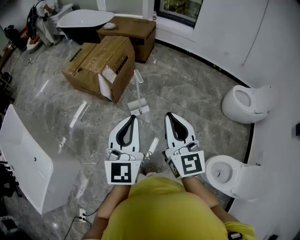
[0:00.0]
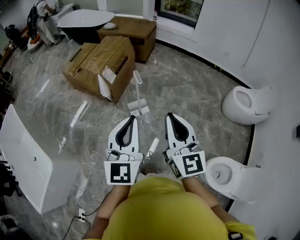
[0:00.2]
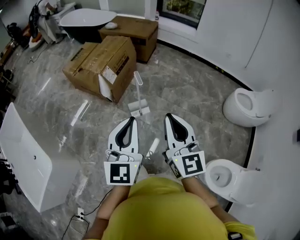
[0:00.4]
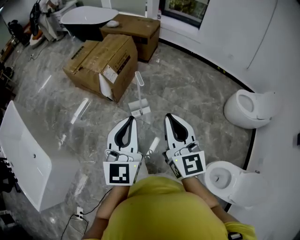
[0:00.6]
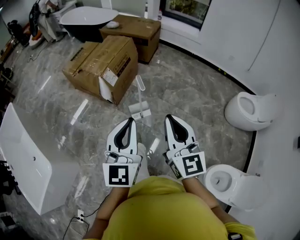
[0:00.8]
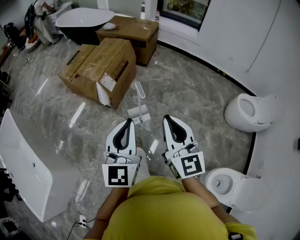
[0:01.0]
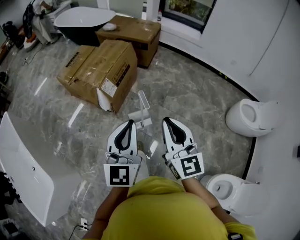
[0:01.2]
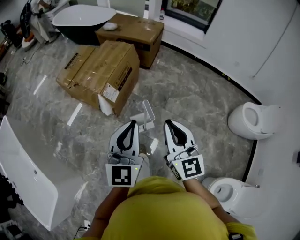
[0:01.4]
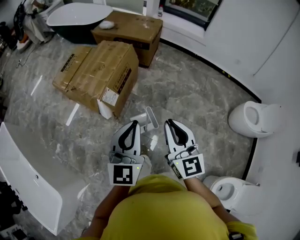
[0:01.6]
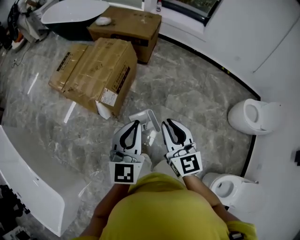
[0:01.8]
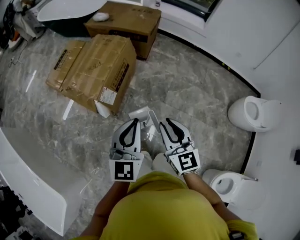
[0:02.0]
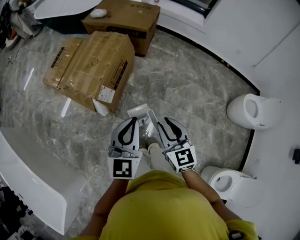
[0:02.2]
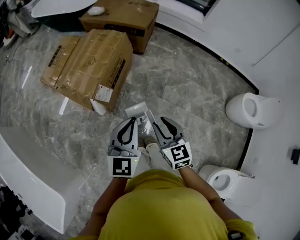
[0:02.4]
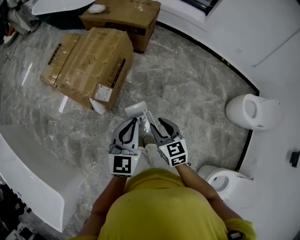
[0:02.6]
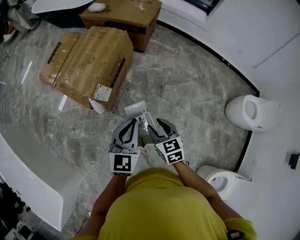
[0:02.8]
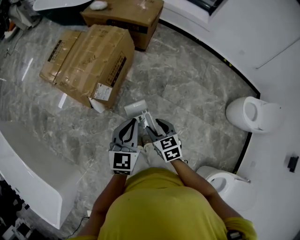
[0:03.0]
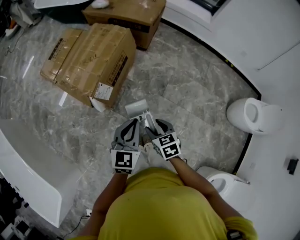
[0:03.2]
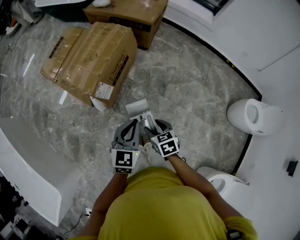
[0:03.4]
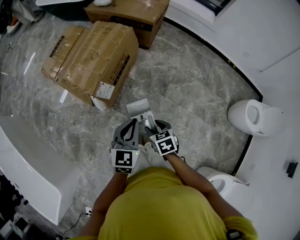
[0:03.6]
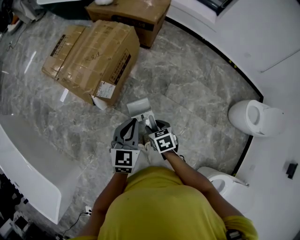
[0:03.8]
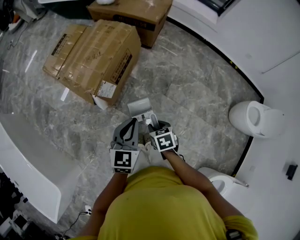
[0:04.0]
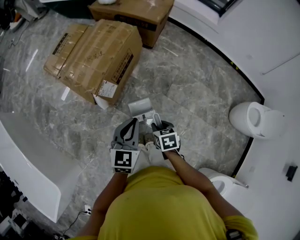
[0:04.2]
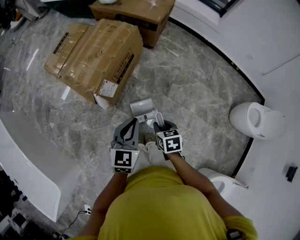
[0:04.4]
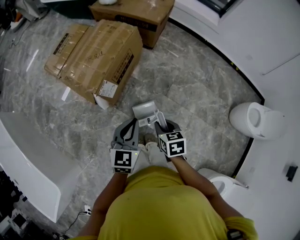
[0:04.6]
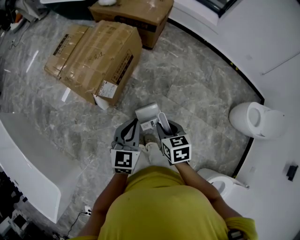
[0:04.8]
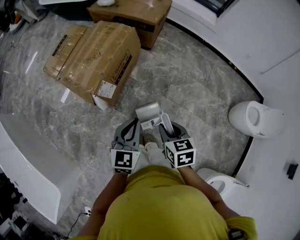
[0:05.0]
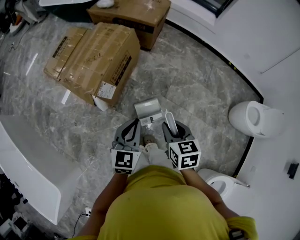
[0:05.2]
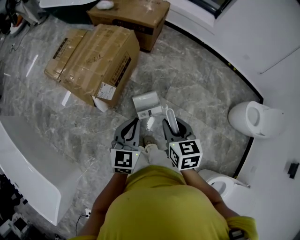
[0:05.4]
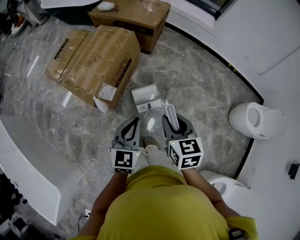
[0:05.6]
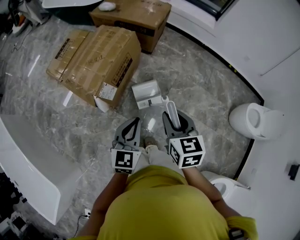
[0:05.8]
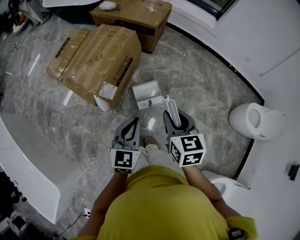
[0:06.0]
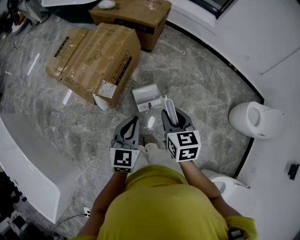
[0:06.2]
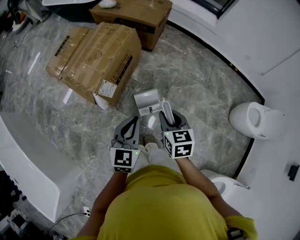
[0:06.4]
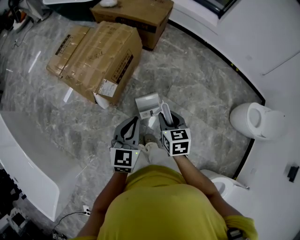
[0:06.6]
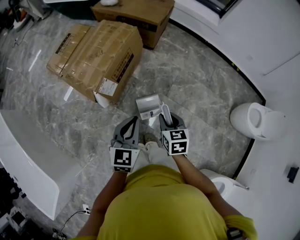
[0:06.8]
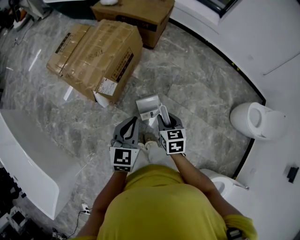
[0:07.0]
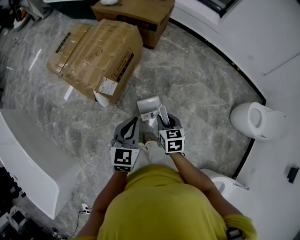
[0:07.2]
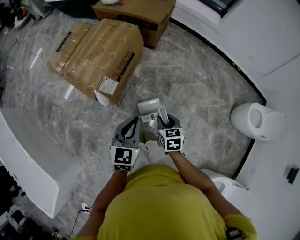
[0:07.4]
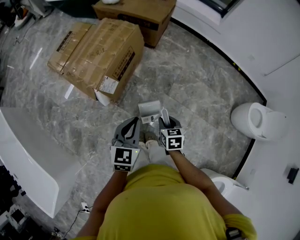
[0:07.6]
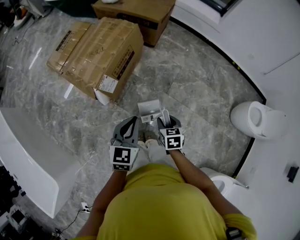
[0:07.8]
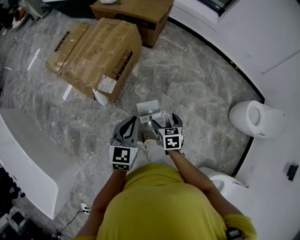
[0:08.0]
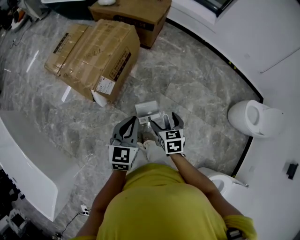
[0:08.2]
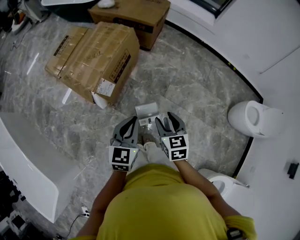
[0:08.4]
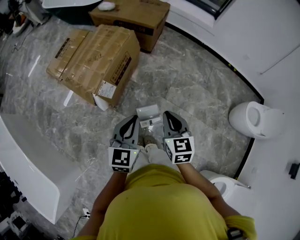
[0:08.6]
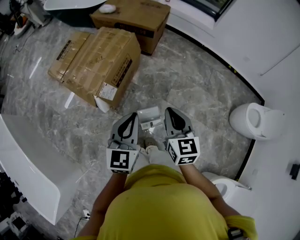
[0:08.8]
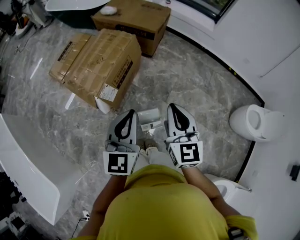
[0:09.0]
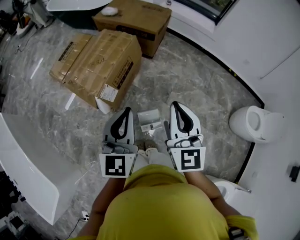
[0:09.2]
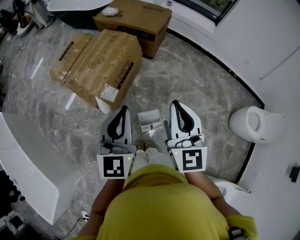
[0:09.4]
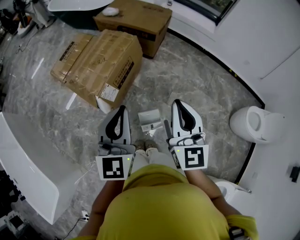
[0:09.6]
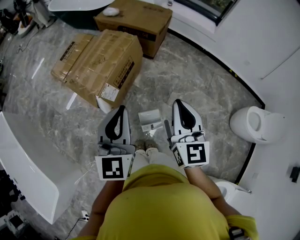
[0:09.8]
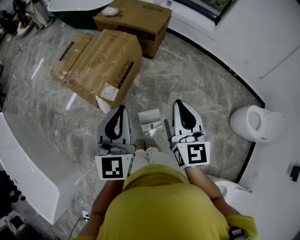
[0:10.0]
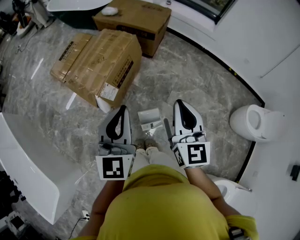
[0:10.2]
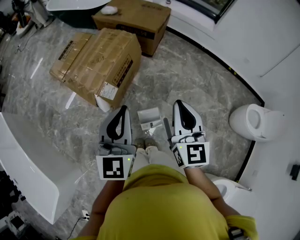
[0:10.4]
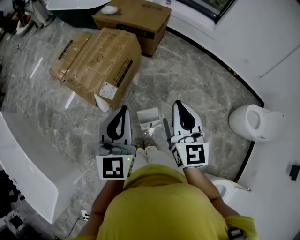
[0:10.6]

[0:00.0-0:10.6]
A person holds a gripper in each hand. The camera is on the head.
0:00.0 to 0:01.6: Both grippers move forward, roughly 35 cm.
0:01.6 to 0:03.0: The left gripper moves downward and forward, roughly 20 cm, while the right gripper goes roughly 25 cm downward, tips its fingers downward by approximately 40 degrees, and opens its fingers.
0:04.6 to 0:06.0: The right gripper travels upward by roughly 15 cm, and changes its angle by roughly 20 degrees.
0:06.0 to 0:07.6: The right gripper travels downward by about 20 cm.
0:07.6 to 0:09.0: The right gripper is displaced upward by some 25 cm, points its fingers some 40 degrees further upward, and opens, then closes again; the left gripper is displaced upward by some 15 cm.
0:09.0 to 0:10.6: The grippers make only small movements.

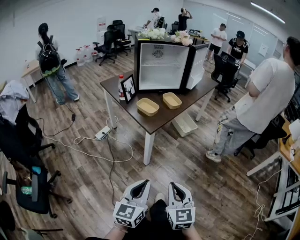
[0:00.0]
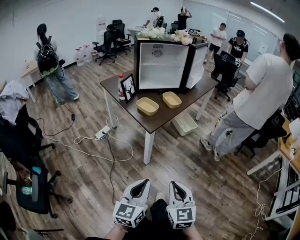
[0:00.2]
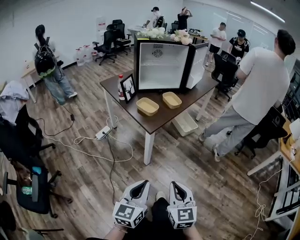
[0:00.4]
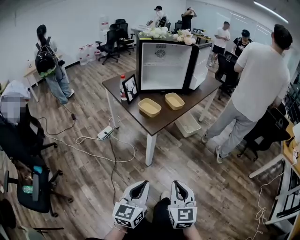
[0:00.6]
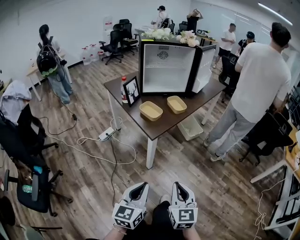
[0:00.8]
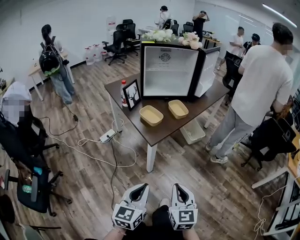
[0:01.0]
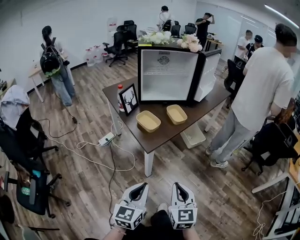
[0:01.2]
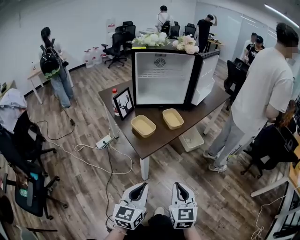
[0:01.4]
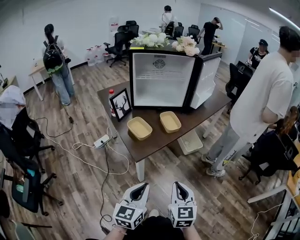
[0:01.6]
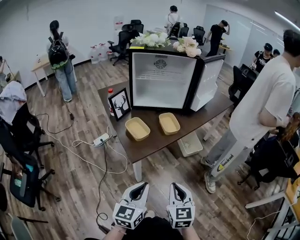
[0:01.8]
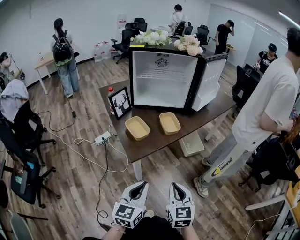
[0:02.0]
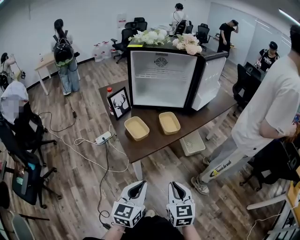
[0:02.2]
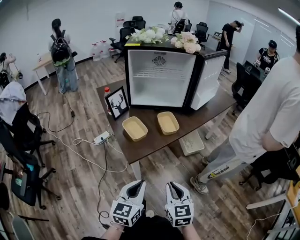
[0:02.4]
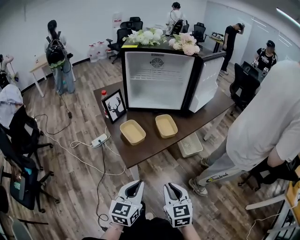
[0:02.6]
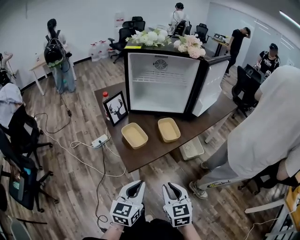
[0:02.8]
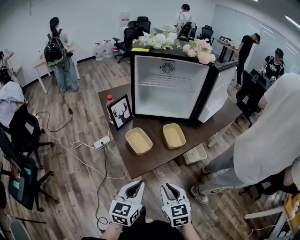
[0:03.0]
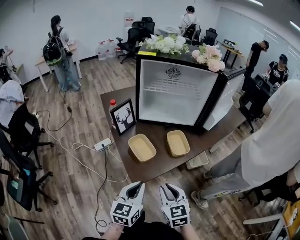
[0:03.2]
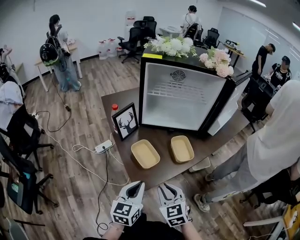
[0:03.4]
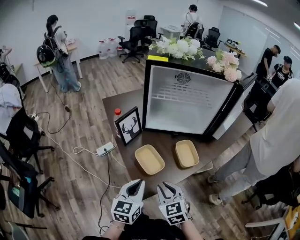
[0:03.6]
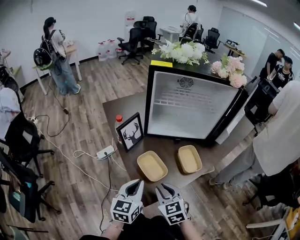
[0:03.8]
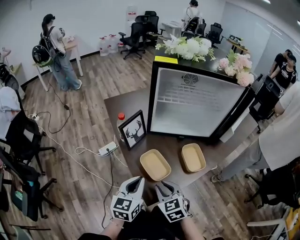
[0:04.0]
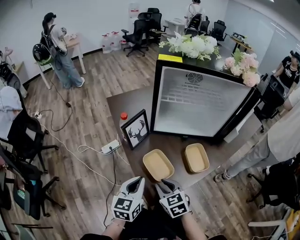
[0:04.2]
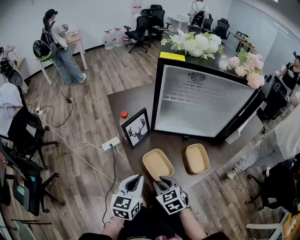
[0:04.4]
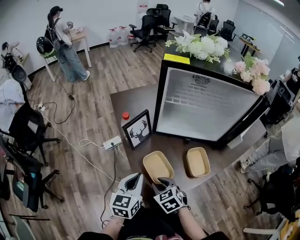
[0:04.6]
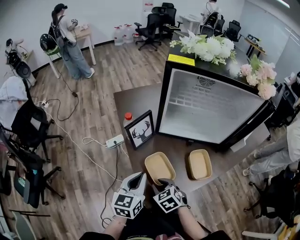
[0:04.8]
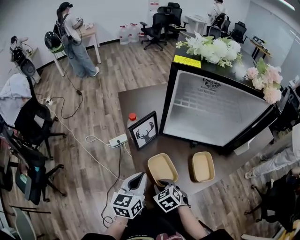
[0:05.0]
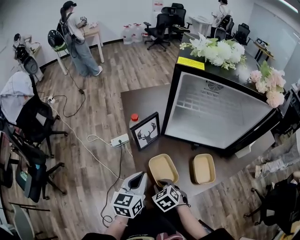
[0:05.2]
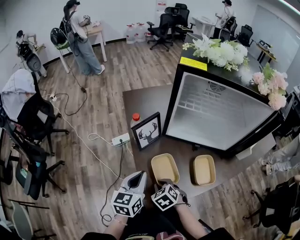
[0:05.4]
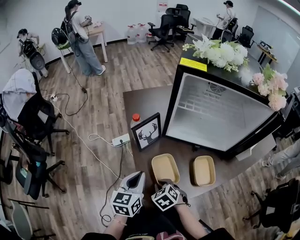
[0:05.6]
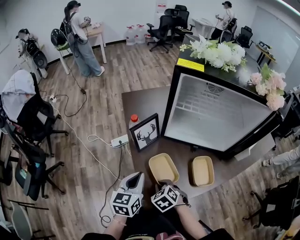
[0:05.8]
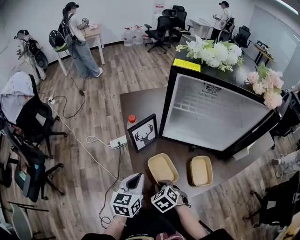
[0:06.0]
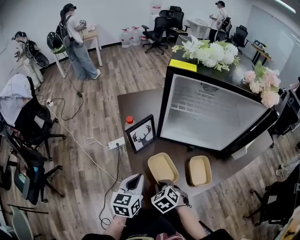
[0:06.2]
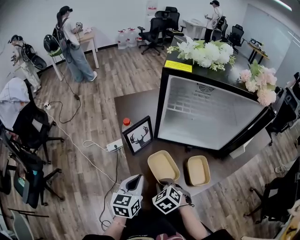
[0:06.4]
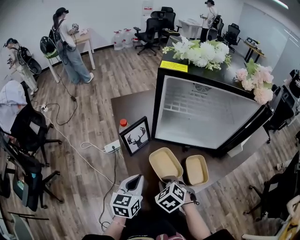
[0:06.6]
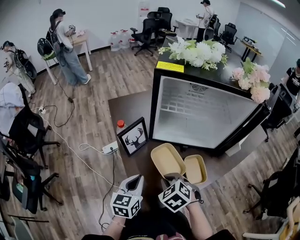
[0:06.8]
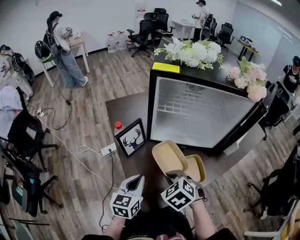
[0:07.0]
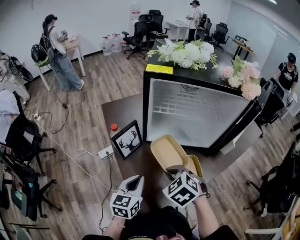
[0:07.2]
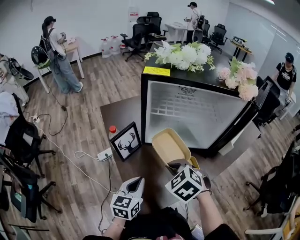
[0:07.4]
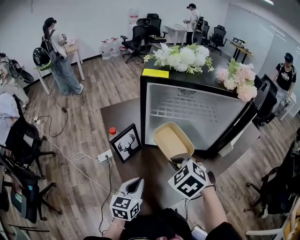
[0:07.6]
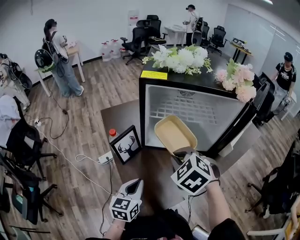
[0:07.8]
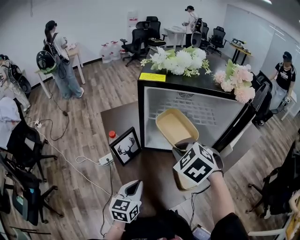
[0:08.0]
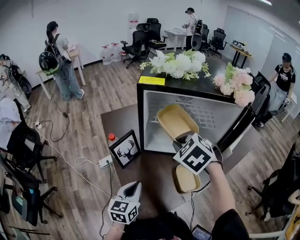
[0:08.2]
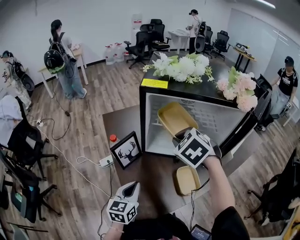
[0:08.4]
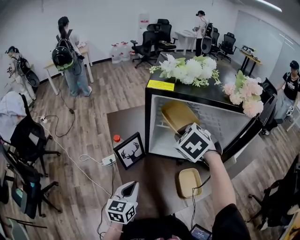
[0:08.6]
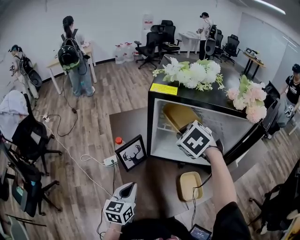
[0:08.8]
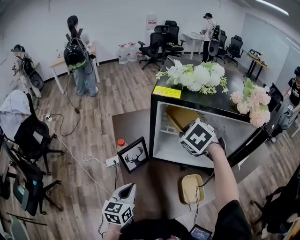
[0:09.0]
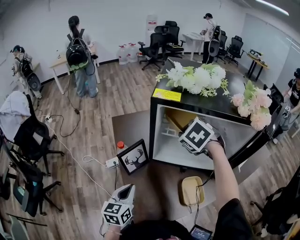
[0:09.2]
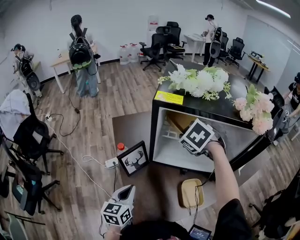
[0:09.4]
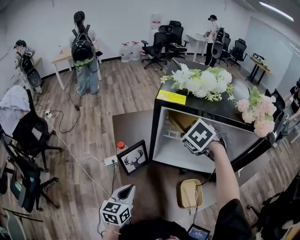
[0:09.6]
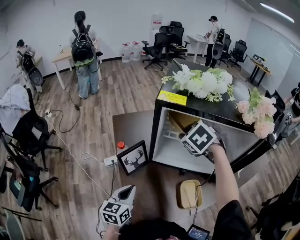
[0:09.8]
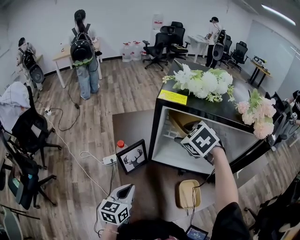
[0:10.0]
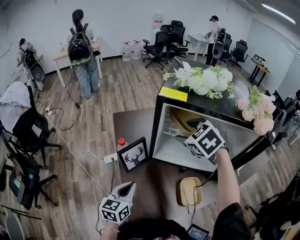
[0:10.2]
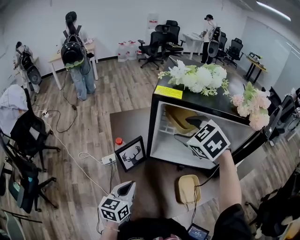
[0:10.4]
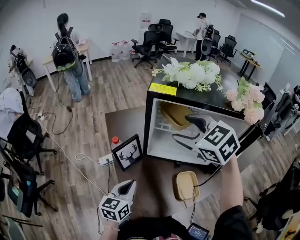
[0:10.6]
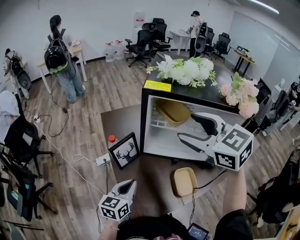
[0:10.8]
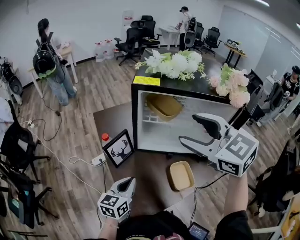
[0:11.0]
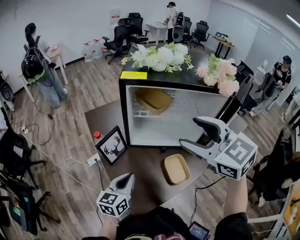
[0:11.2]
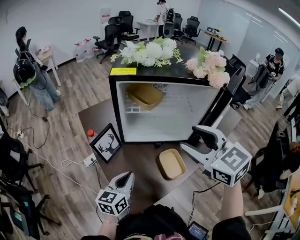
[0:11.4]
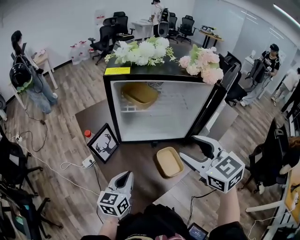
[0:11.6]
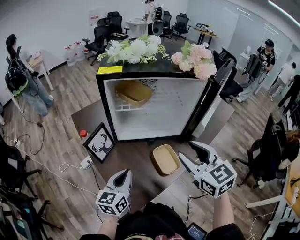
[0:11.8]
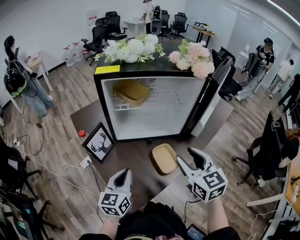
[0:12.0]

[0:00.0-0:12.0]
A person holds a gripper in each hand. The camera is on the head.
0:00.0 to 0:01.6: Both grippers travel together forward and to the right, some 25 cm.
0:01.6 to 0:03.0: Both grippers move forward, approximately 15 cm.
0:03.0 to 0:04.4: Both grippers move forward and to the left, roughly 25 cm. The right gripper turns by about 20 degrees.
0:04.4 to 0:06.0: The right gripper goes about 5 cm downward, and rotates some 20 degrees.
0:06.0 to 0:07.6: The right gripper heads upward and to the right, covering about 25 cm. Meanwhile the left gripper heads to the right, covering about 5 cm.
0:07.6 to 0:09.0: The left gripper ends up about 5 cm from where it was, while the right gripper heads forward, covering roughly 20 cm.
0:09.0 to 0:10.4: The right gripper changes place by some 5 cm, and opens.
0:10.4 to 0:12.0: The right gripper travels backward and to the right by roughly 30 cm, and turns by about 50 degrees, while the left gripper is displaced to the right by roughly 10 cm.

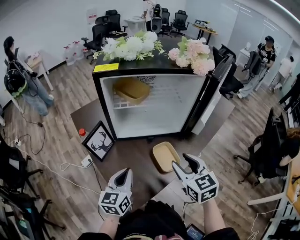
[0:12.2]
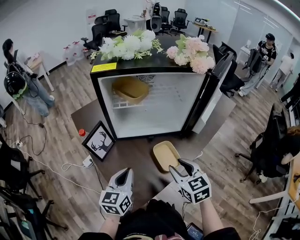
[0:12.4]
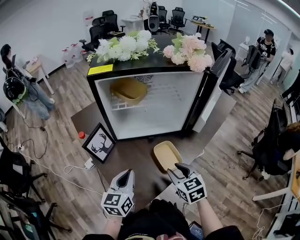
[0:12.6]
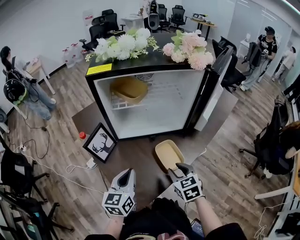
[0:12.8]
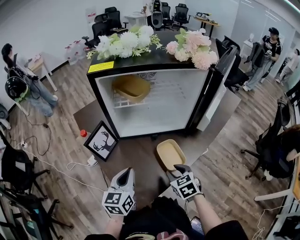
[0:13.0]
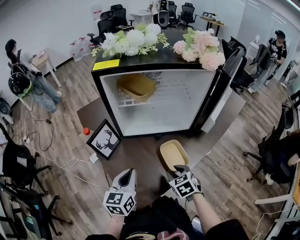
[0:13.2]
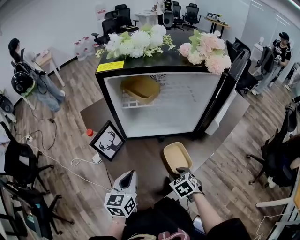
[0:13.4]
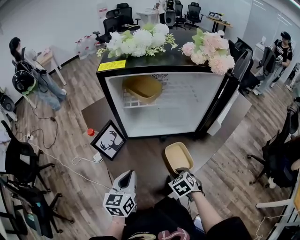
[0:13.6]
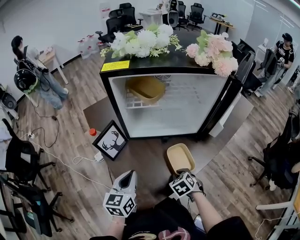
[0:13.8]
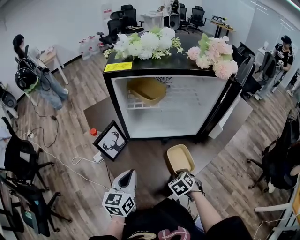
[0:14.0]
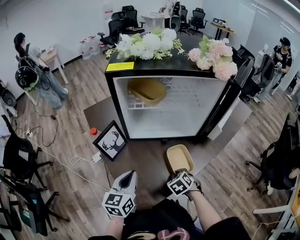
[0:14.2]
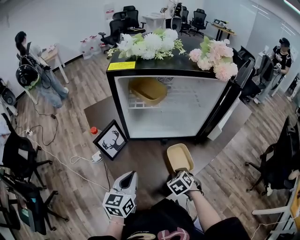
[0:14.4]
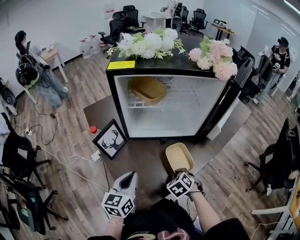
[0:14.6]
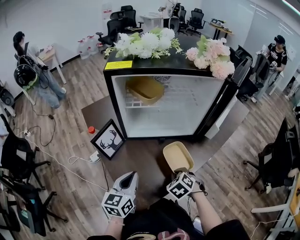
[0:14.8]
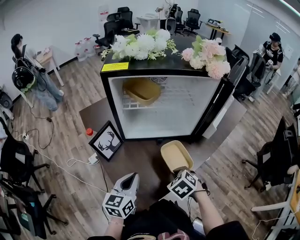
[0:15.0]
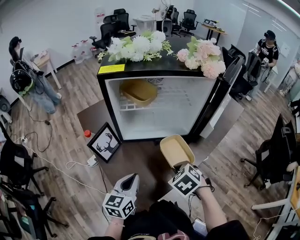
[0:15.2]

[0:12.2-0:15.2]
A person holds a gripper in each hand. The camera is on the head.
0:12.2 to 0:13.8: The right gripper heads downward, covering about 25 cm, tips its fingers downward by some 40 degrees, and closes up.
0:13.8 to 0:15.2: The right gripper travels upward by roughly 15 cm.
